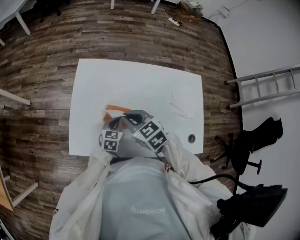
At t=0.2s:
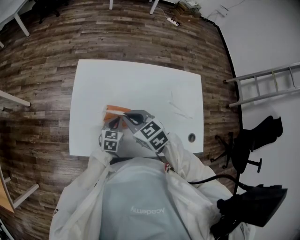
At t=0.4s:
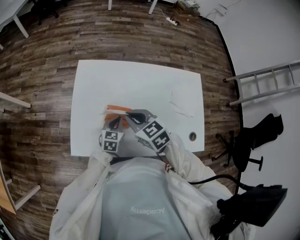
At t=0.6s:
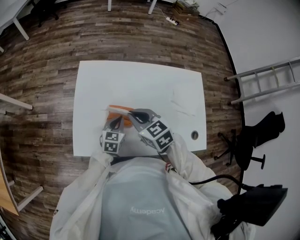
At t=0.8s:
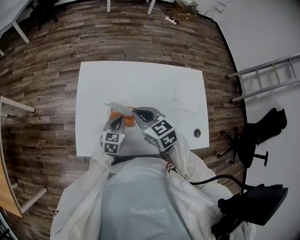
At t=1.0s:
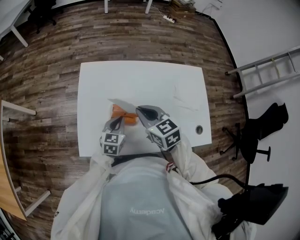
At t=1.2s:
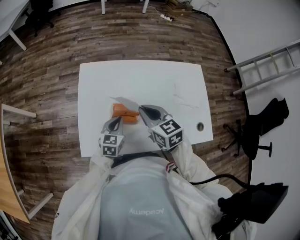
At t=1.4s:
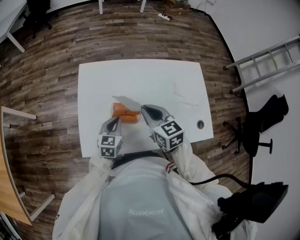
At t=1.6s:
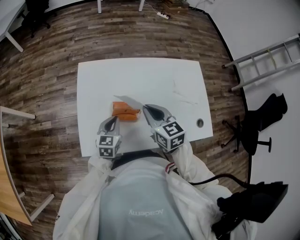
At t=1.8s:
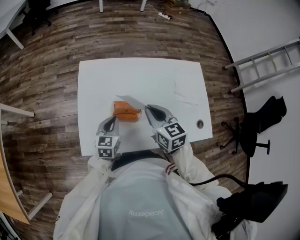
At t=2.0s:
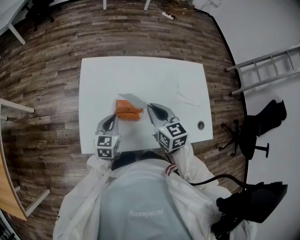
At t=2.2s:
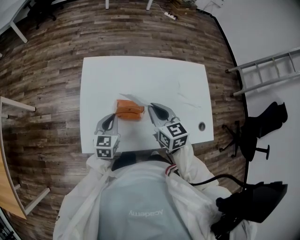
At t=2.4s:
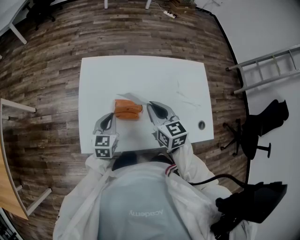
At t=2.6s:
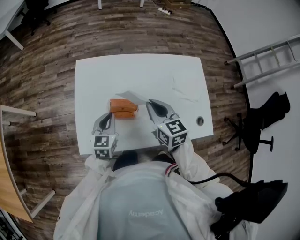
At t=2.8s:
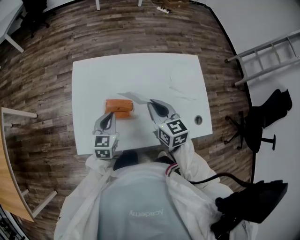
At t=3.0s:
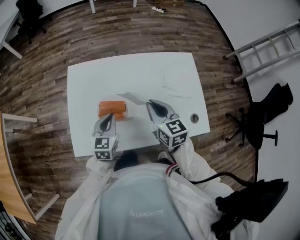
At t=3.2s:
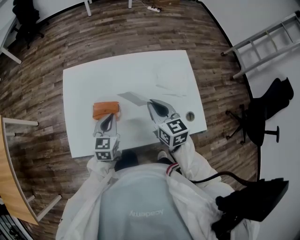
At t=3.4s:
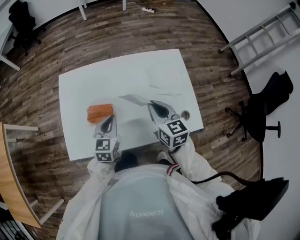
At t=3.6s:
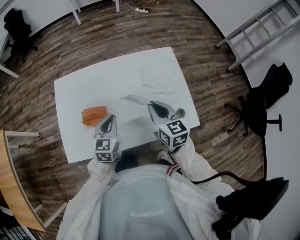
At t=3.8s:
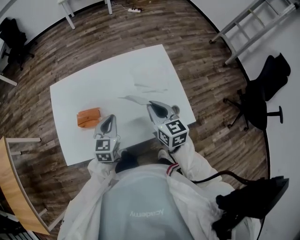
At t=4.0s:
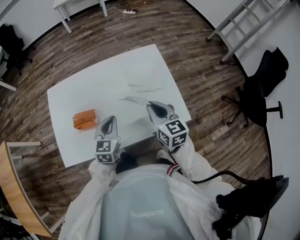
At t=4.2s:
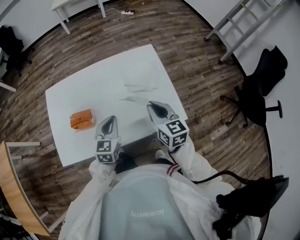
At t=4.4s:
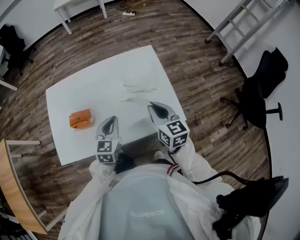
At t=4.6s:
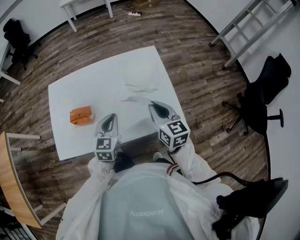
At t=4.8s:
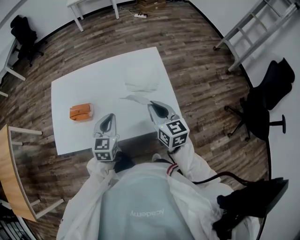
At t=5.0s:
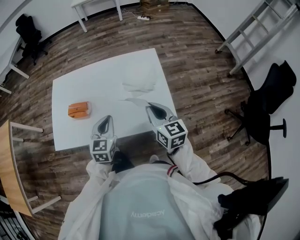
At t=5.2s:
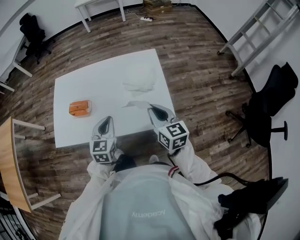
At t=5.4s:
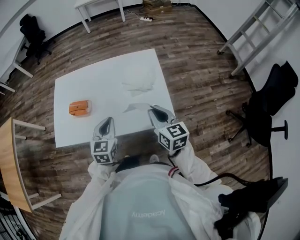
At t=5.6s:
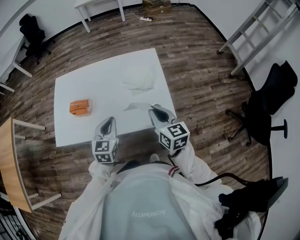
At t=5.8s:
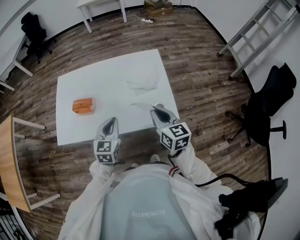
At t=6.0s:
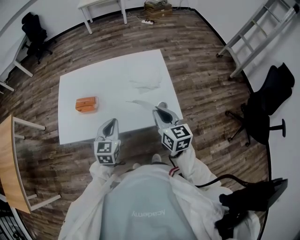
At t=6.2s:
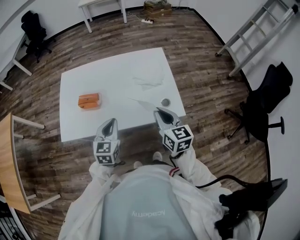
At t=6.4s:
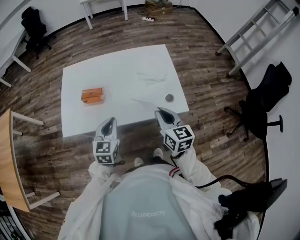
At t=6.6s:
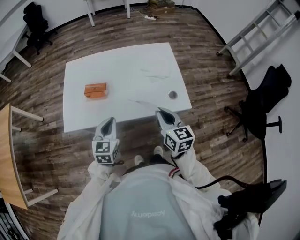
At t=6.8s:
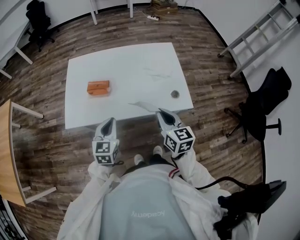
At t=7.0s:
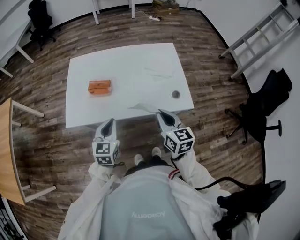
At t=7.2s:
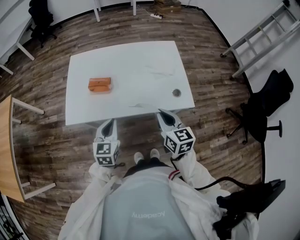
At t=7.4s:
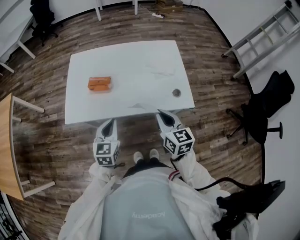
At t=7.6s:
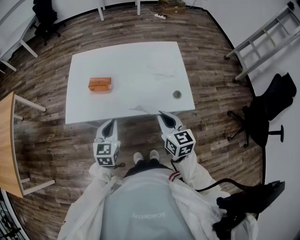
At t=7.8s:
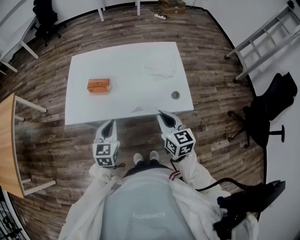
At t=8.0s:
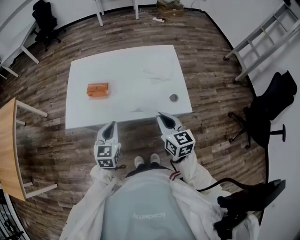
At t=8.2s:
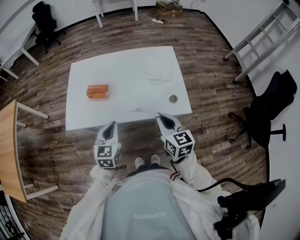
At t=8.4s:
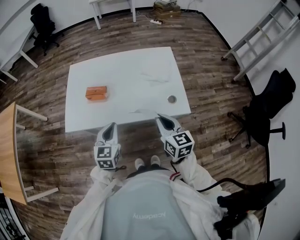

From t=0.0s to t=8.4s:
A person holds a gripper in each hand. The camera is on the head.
From t=0.0s to t=1.4s: The left gripper is displaced upward by approximately 5 cm, while the right gripper is displaced to the right by roughly 5 cm, and changes its angle by approximately 30 degrees.
From t=1.4s to t=2.8s: The right gripper moves to the right, approximately 5 cm.
From t=2.8s to t=4.2s: Both grippers move to the right, approximately 20 cm.
From t=4.2s to t=5.6s: The left gripper heads backward, covering some 5 cm. The right gripper shifts by approximately 5 cm.
From t=5.6s to t=7.0s: The grippers both shift to the left and backward by some 15 cm.
From t=7.0s to t=8.4s: The grippers make only small movements.

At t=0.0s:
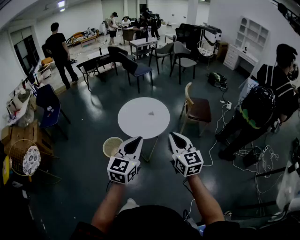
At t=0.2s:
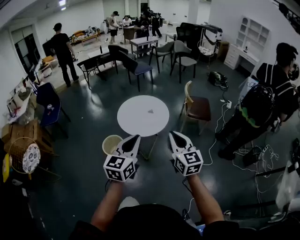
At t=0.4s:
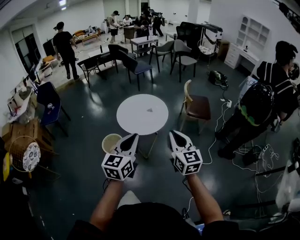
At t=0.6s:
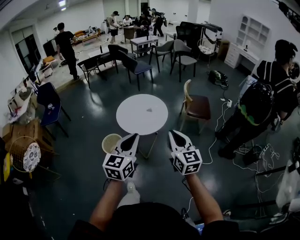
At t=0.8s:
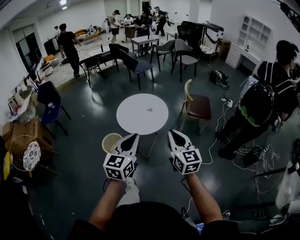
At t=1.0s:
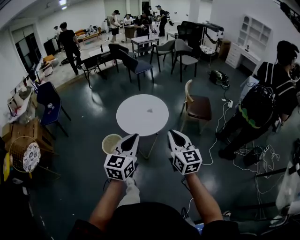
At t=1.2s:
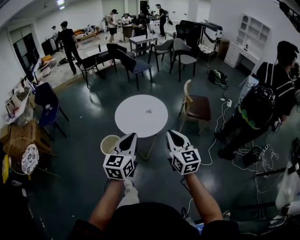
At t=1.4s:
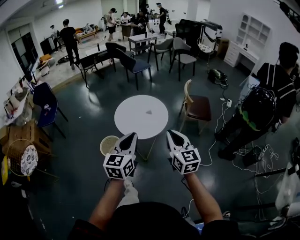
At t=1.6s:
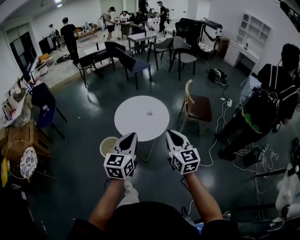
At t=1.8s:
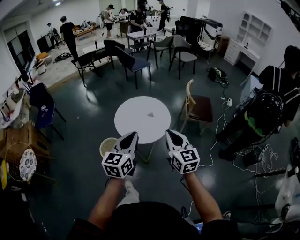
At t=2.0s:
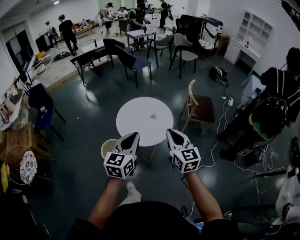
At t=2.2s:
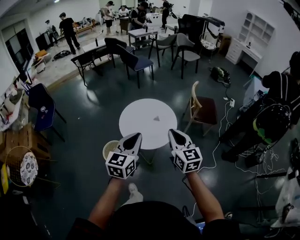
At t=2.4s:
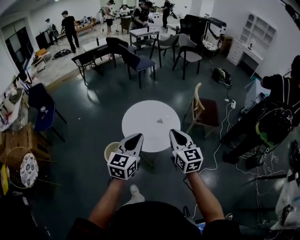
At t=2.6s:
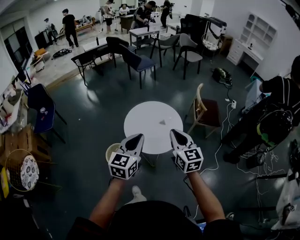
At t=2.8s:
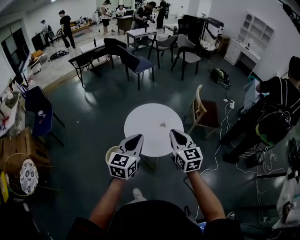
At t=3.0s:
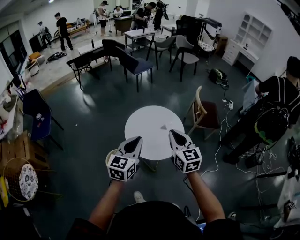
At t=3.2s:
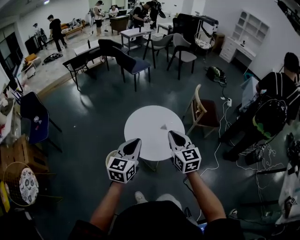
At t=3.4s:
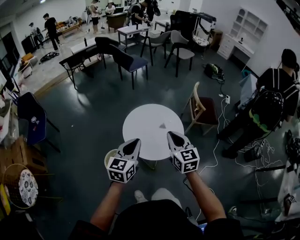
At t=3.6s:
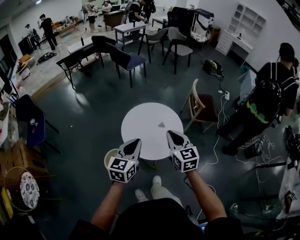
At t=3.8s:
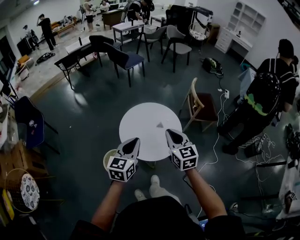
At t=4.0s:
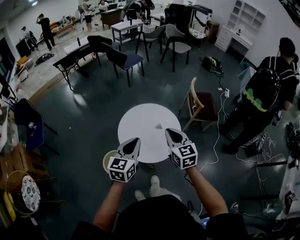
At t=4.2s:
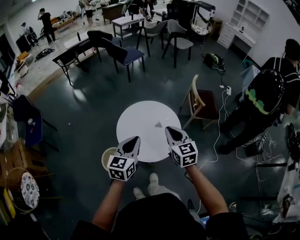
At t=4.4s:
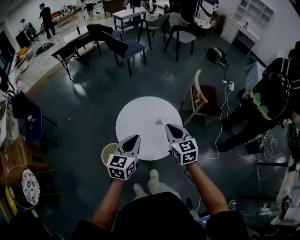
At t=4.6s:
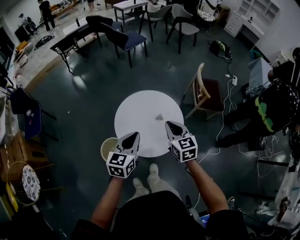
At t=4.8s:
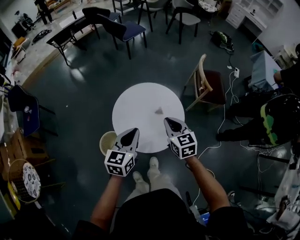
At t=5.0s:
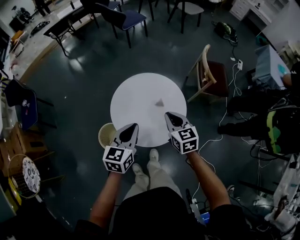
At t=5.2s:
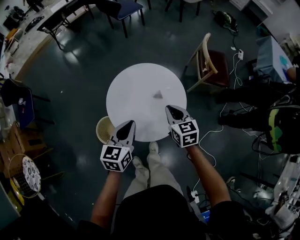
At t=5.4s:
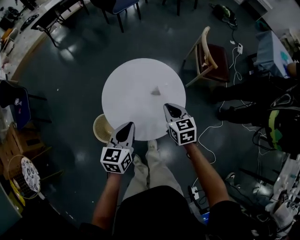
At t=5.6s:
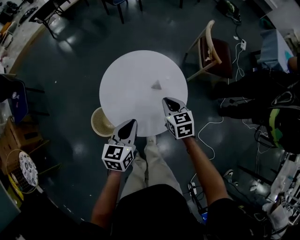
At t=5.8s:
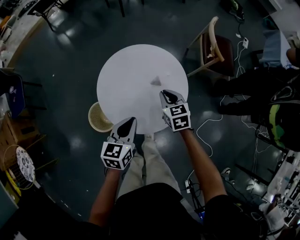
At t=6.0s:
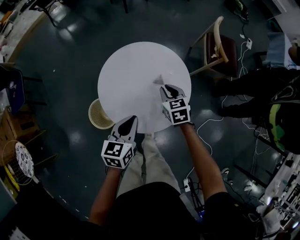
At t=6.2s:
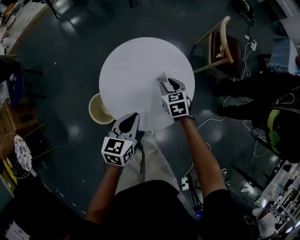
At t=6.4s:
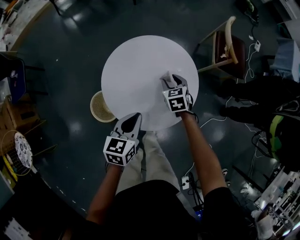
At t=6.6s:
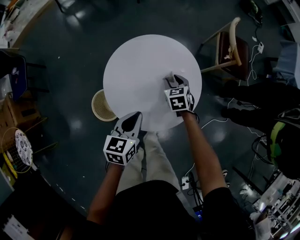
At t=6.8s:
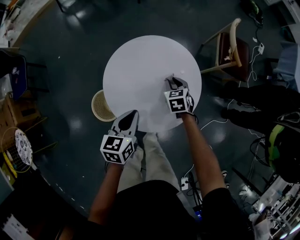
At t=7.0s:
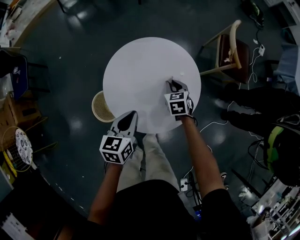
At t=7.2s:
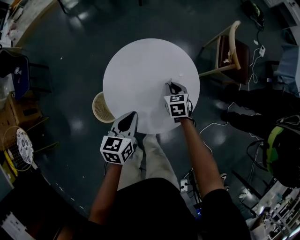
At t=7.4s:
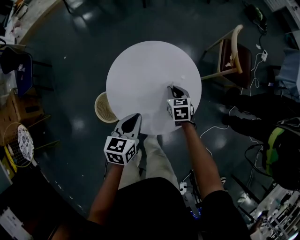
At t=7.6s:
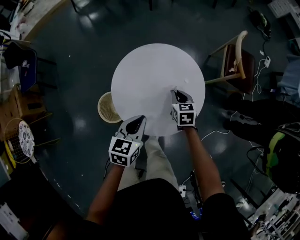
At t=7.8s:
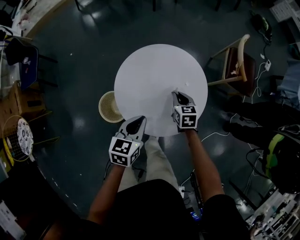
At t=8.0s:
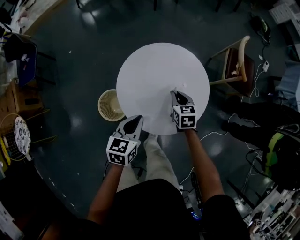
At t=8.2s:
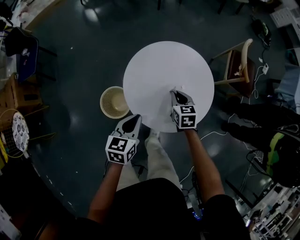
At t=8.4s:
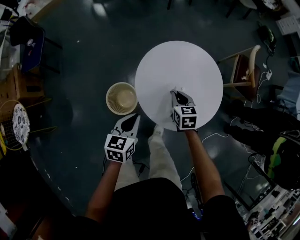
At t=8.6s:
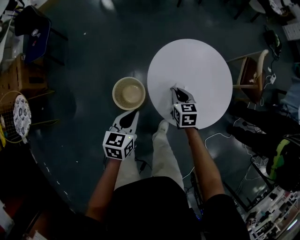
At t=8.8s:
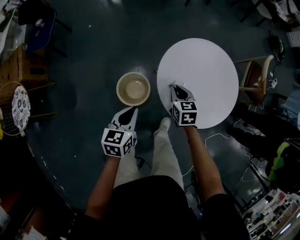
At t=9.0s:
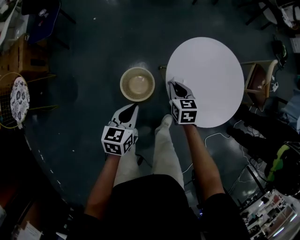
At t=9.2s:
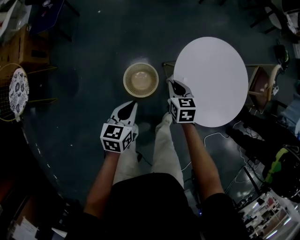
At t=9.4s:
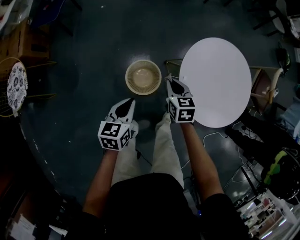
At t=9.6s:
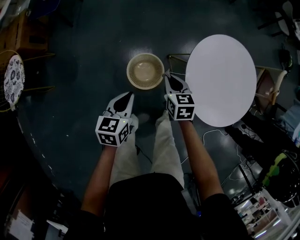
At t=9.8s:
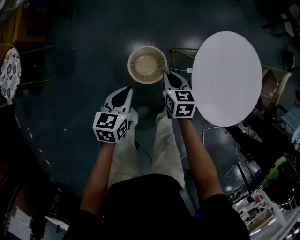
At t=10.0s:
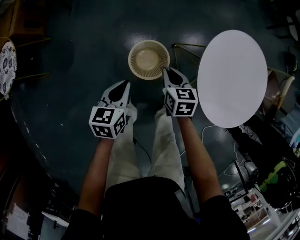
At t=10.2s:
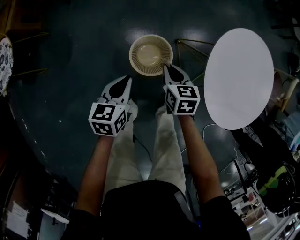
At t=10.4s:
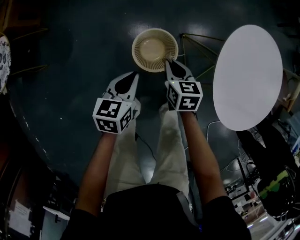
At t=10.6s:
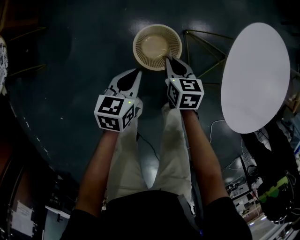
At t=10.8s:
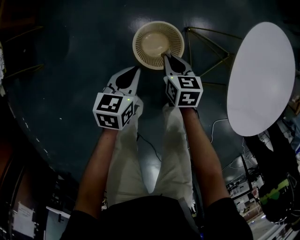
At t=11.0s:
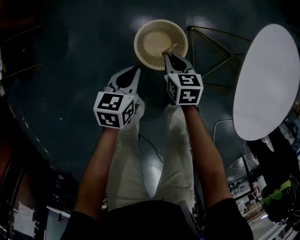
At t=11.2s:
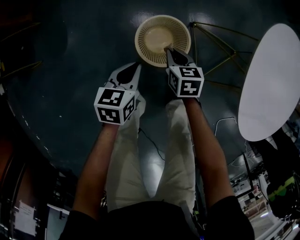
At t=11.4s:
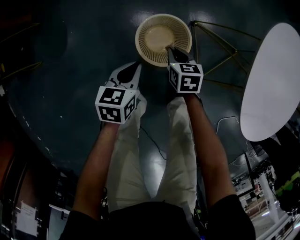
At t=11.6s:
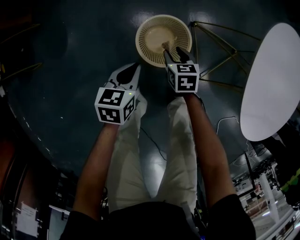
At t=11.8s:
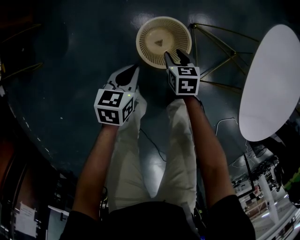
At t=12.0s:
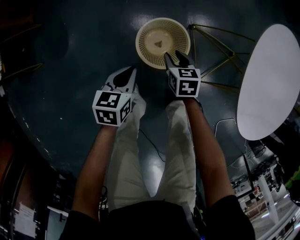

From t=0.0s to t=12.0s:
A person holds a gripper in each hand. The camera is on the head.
From t=0.0s to t=1.6s: The grippers both shift forward by approximately 10 cm.
From t=1.6s to t=3.0s: The two grippers go approximately 25 cm forward and to the left.
From t=3.0s to t=4.4s: Both grippers move forward and downward, about 15 cm.
From t=4.4s to t=6.0s: The left gripper goes some 25 cm downward. Meanwhile the right gripper heads downward and forward, covering roughly 35 cm, and changes its angle by roughly 20 degrees.
From t=6.0s to t=7.6s: The right gripper opens, then closes again.
From t=7.6s to t=9.0s: The grippers both shift to the left by about 35 cm.
From t=9.0s to t=10.4s: The two grippers go about 25 cm downward and to the left.
From t=10.4s to t=12.0s: The two grippers go about 15 cm downward. The right gripper opens its fingers.

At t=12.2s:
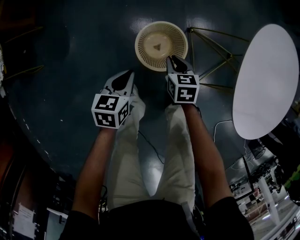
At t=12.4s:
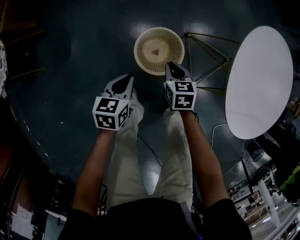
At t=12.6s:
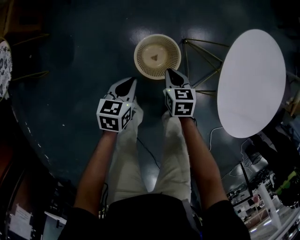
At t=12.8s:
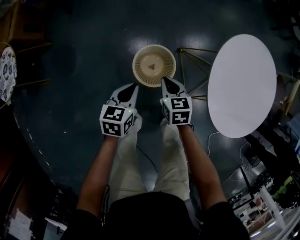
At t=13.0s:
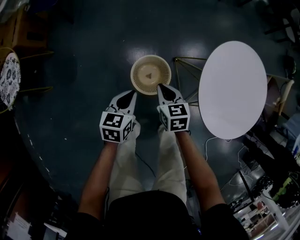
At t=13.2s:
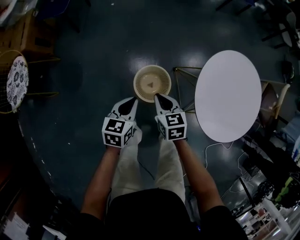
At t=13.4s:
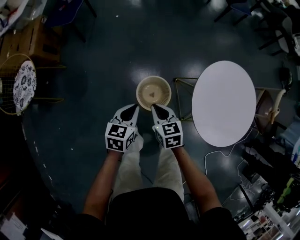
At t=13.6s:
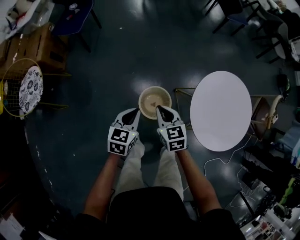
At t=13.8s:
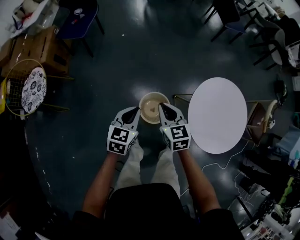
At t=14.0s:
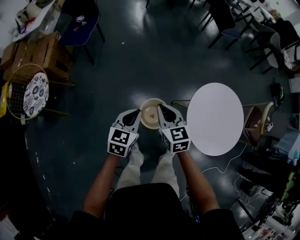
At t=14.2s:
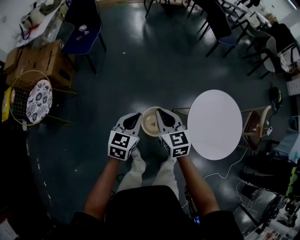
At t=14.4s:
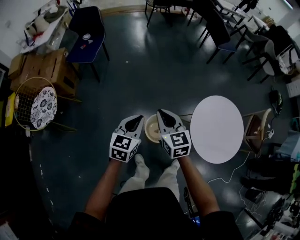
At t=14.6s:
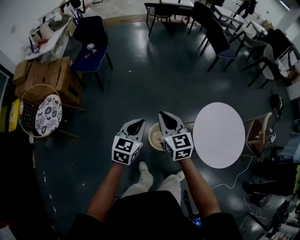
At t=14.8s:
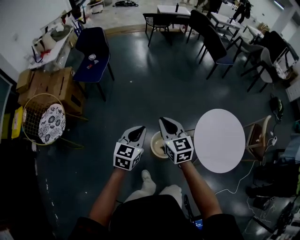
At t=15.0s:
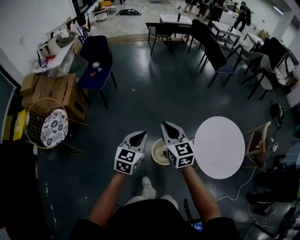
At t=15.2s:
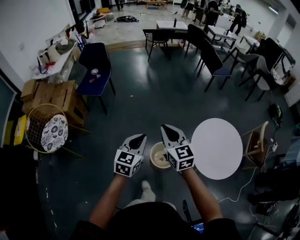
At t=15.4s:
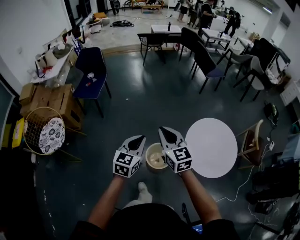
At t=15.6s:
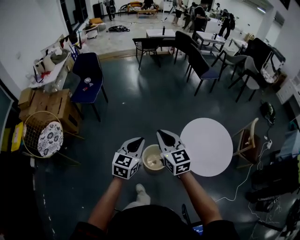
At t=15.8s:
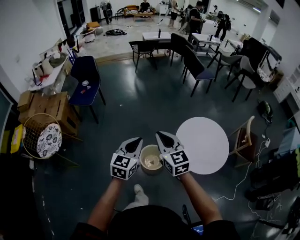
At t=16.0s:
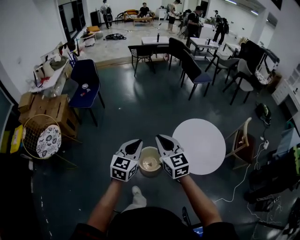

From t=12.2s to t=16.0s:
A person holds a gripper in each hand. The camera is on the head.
From t=12.2s to t=13.4s: Both grippers move upward, about 30 cm.
From t=13.4s to t=14.8s: The grippers both shift upward by some 30 cm. The right gripper changes its angle by about 30 degrees. Meanwhile the left gripper rotates about 20 degrees.
From t=14.8s to t=16.0s: Both grippers move backward, to the right and upward, roughly 25 cm.
